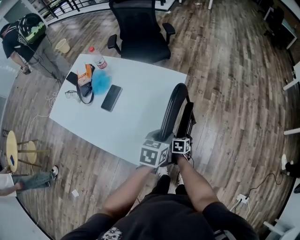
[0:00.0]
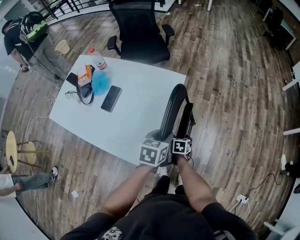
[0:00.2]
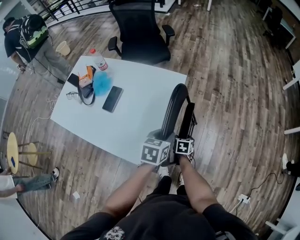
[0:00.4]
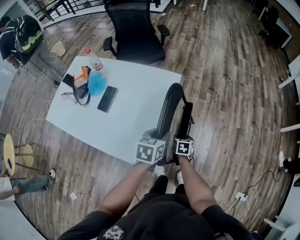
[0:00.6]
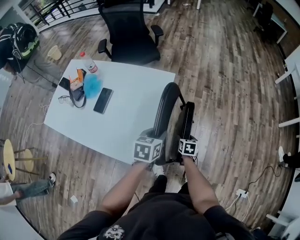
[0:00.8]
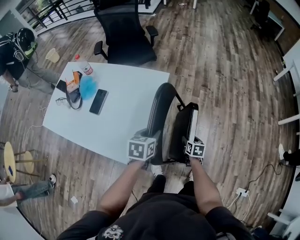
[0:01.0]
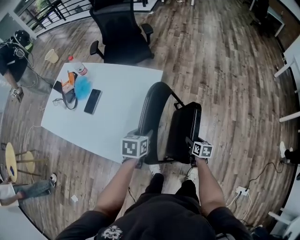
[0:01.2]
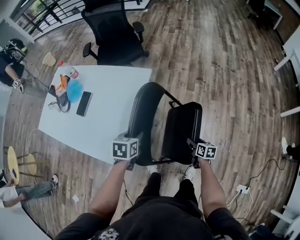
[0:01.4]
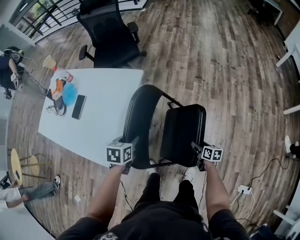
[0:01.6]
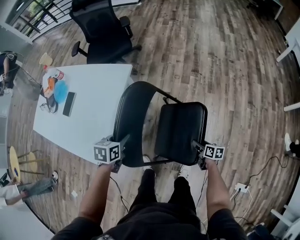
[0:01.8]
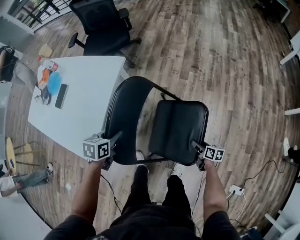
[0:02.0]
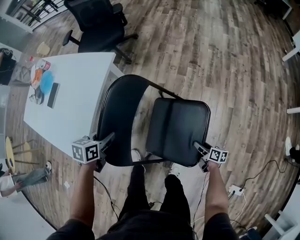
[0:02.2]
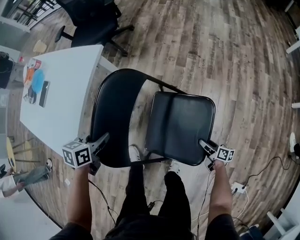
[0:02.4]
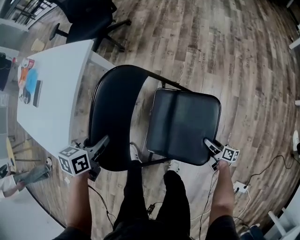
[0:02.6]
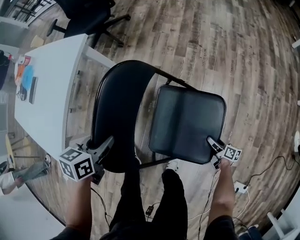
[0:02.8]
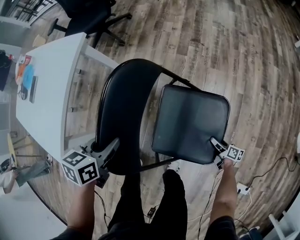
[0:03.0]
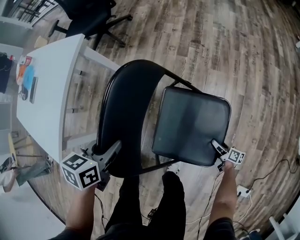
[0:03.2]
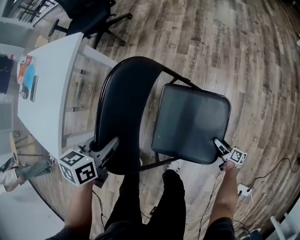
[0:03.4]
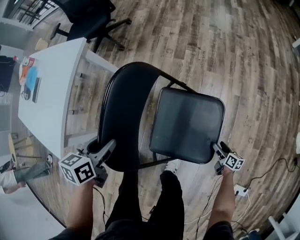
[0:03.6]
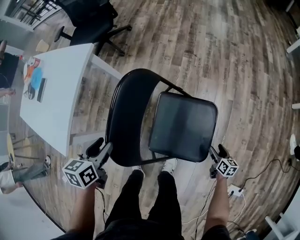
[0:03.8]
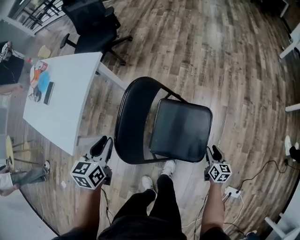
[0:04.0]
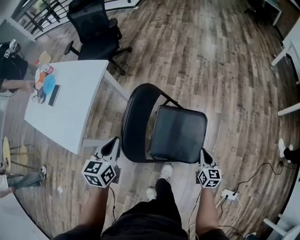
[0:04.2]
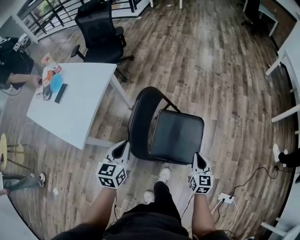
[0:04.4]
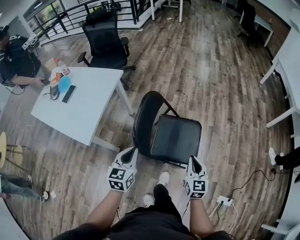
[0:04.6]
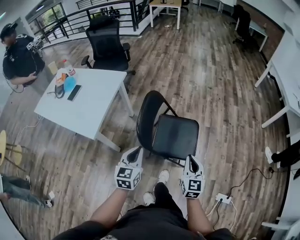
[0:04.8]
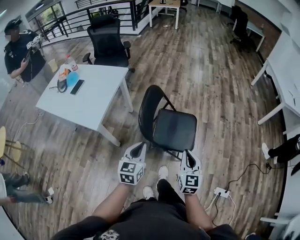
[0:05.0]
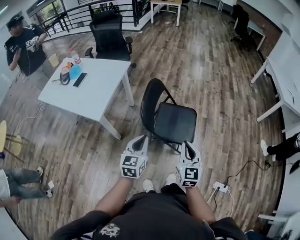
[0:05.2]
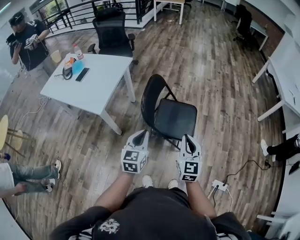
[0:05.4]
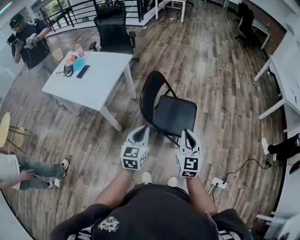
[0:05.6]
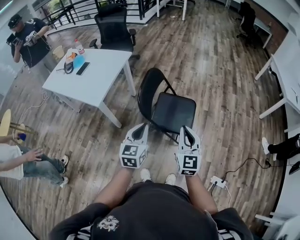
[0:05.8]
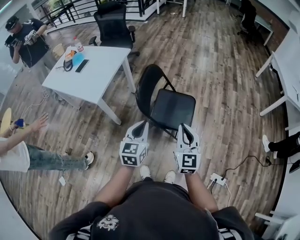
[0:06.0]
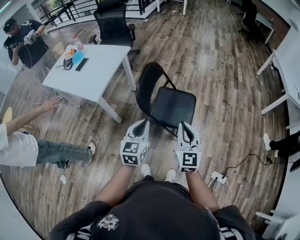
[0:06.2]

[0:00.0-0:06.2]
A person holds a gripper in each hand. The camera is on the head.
0:00.0 to 0:01.6: The right gripper shifts roughly 35 cm to the right, and changes its angle by some 40 degrees; the left gripper heads to the right and downward, covering approximately 10 cm.
0:01.6 to 0:03.2: The right gripper goes approximately 40 cm to the right and downward, and changes its angle by roughly 20 degrees; the left gripper heads to the right and downward, covering some 25 cm.
0:03.2 to 0:04.6: The left gripper heads upward and backward, covering roughly 30 cm, changes its angle by roughly 30 degrees, and opens, then closes once more. The right gripper travels upward by some 50 cm, rolls counterclockwise, seen from behind, by some 60 degrees, and closes up.
0:04.6 to 0:06.2: The left gripper heads backward, to the right and upward, covering approximately 25 cm, while the right gripper travels backward and upward by about 25 cm.

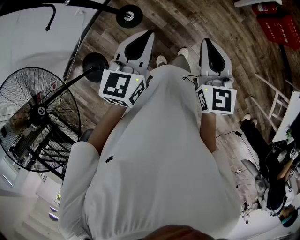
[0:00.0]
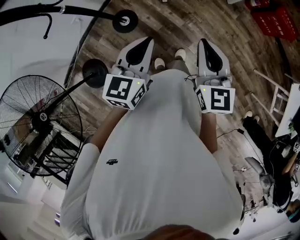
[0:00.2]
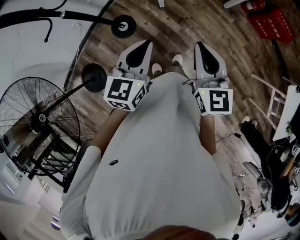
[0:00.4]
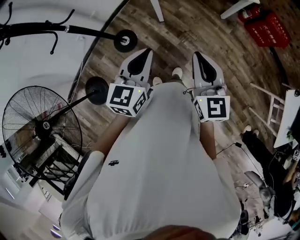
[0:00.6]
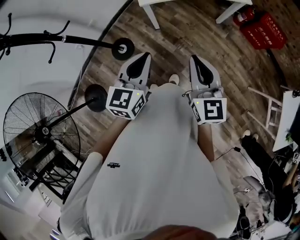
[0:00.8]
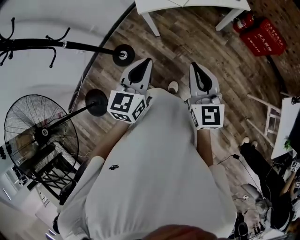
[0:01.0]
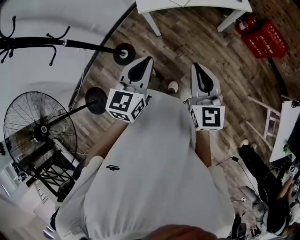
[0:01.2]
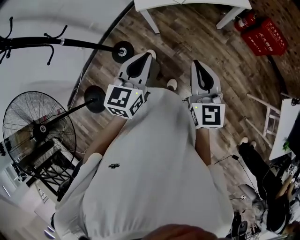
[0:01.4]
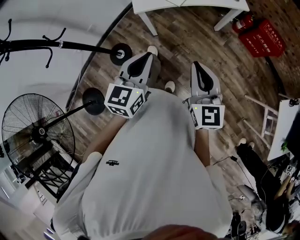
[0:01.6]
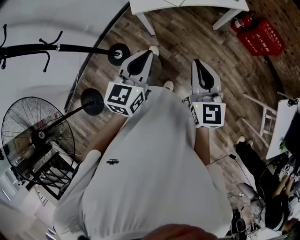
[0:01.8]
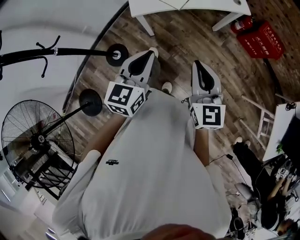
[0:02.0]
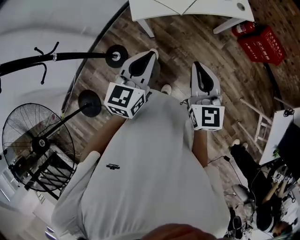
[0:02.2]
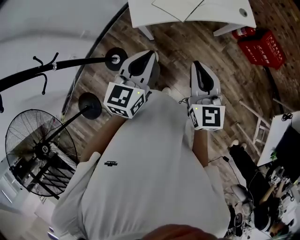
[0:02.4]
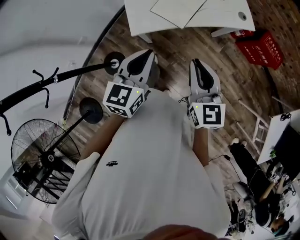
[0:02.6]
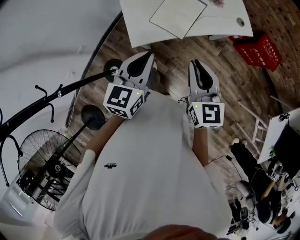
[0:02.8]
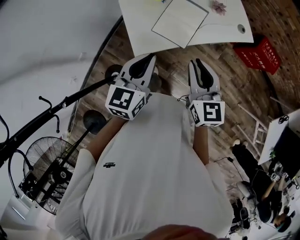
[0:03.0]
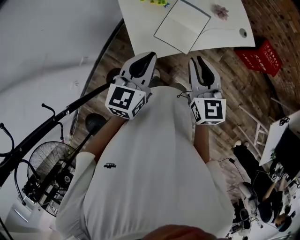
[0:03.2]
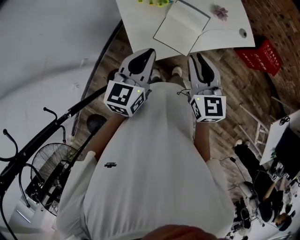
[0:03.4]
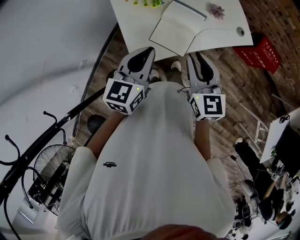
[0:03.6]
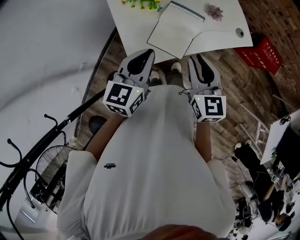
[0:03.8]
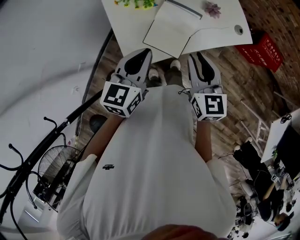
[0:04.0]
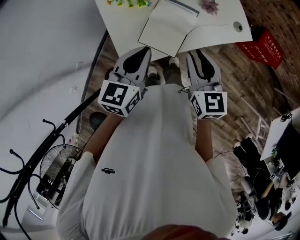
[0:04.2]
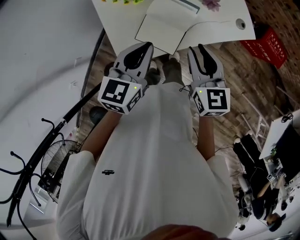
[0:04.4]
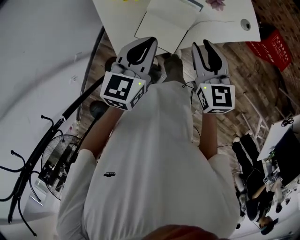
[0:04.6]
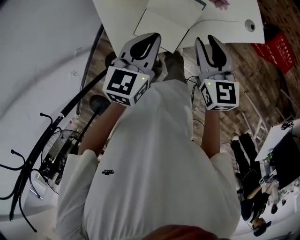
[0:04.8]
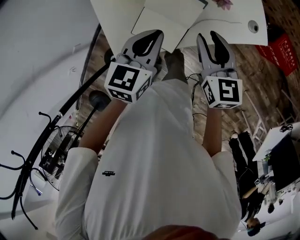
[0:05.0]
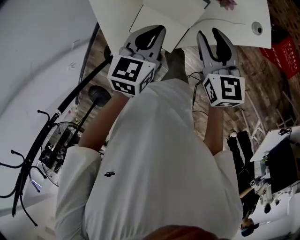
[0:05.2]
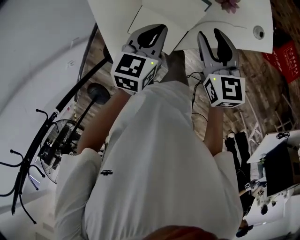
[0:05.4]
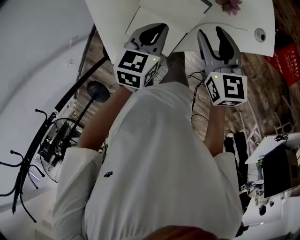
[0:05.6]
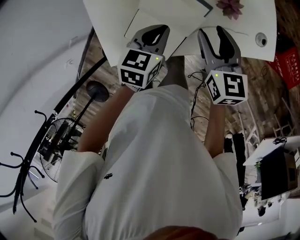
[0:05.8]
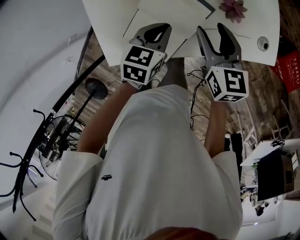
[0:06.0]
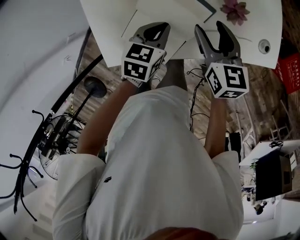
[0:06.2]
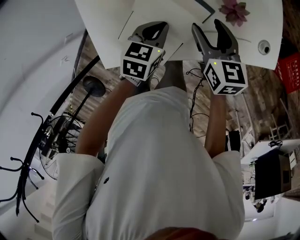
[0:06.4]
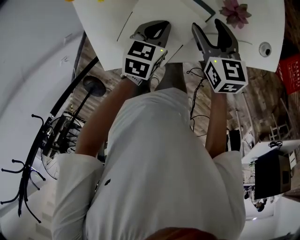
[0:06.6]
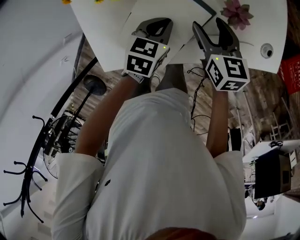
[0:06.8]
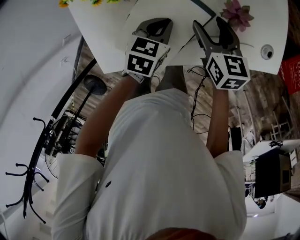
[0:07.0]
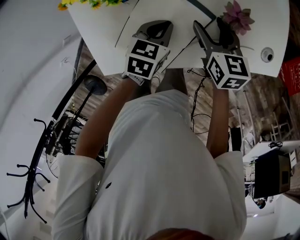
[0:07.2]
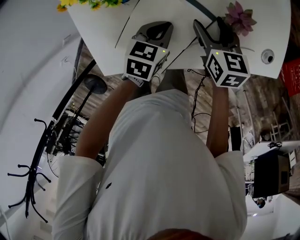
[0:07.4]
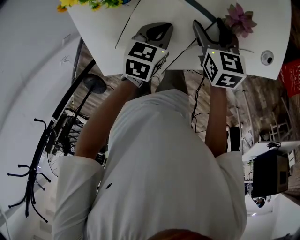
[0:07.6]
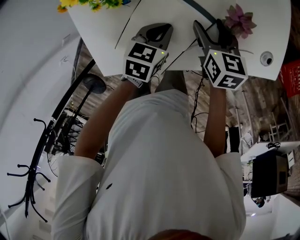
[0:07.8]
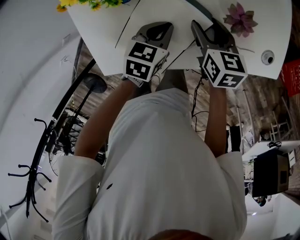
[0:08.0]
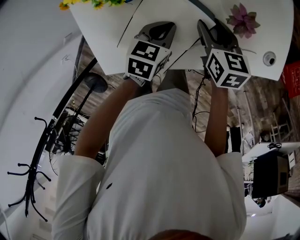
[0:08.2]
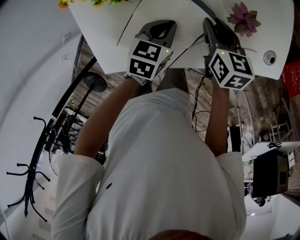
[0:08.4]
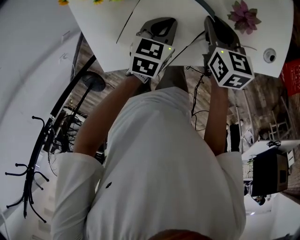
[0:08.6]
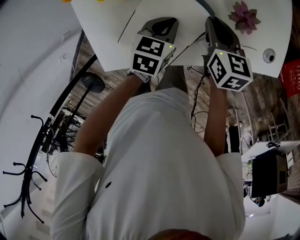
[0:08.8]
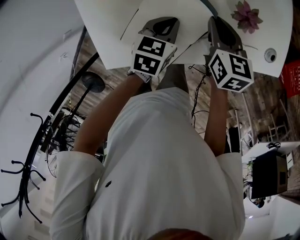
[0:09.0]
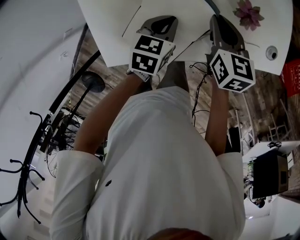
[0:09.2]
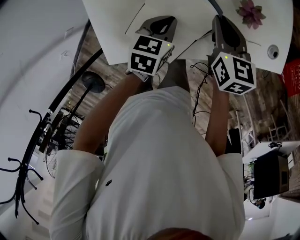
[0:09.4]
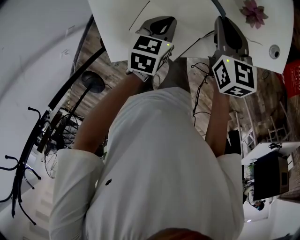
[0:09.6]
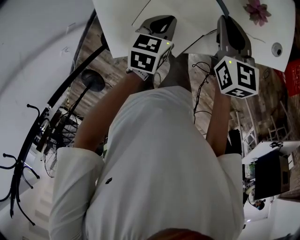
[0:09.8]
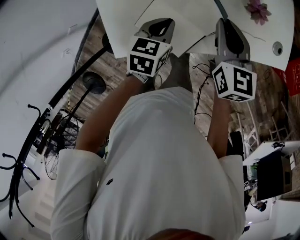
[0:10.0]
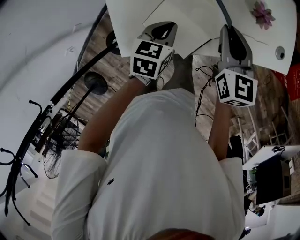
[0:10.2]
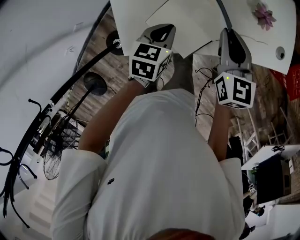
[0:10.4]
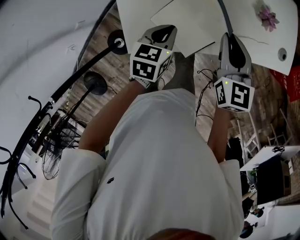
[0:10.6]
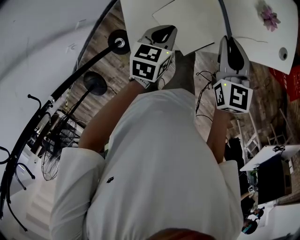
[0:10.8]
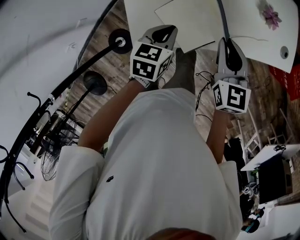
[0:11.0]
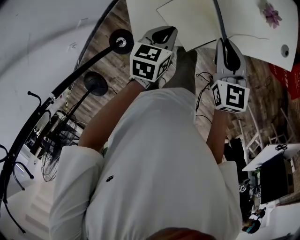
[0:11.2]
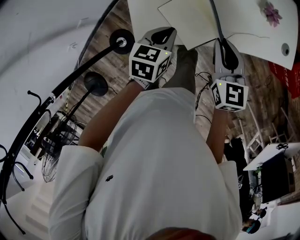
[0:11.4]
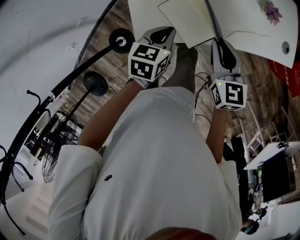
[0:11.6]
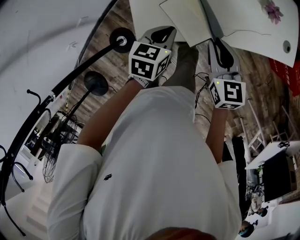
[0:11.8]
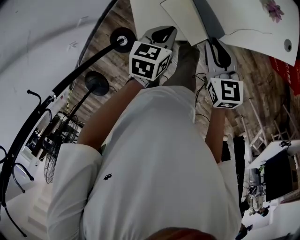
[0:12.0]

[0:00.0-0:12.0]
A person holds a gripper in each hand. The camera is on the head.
0:00.0 to 0:01.6: Both grippers travel together to the right, approximately 15 cm.
0:01.6 to 0:03.0: Both grippers travel together forward, about 30 cm.
0:03.0 to 0:04.4: Both grippers move forward and to the right, some 15 cm.
0:04.4 to 0:06.0: Both grippers travel together downward and forward, approximately 20 cm. The left gripper changes its angle by approximately 20 degrees; the right gripper opens.
0:06.0 to 0:07.6: The right gripper travels downward and forward by about 15 cm. The left gripper heads downward, covering approximately 10 cm.
0:07.6 to 0:09.0: The right gripper closes up.
0:09.0 to 0:10.4: The left gripper goes roughly 15 cm backward and to the left, while the right gripper shifts some 15 cm upward and backward.
0:10.4 to 0:12.0: The left gripper is displaced backward by approximately 10 cm, while the right gripper moves backward and to the left, about 15 cm.

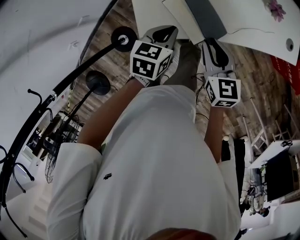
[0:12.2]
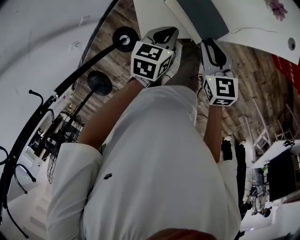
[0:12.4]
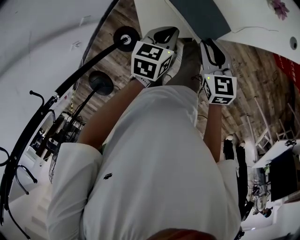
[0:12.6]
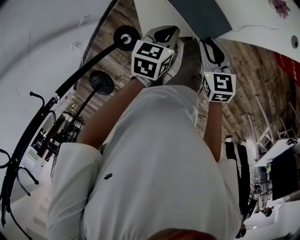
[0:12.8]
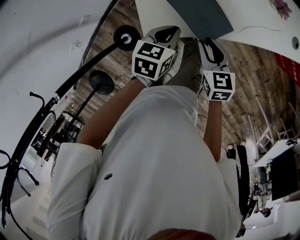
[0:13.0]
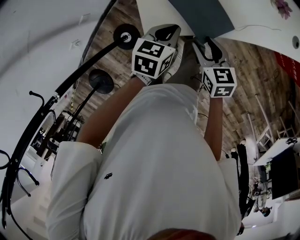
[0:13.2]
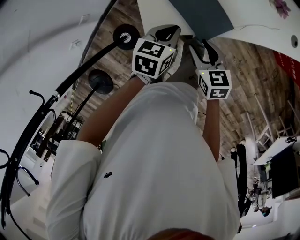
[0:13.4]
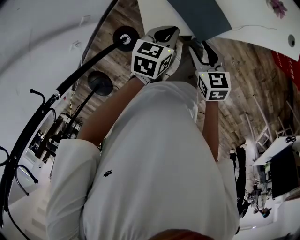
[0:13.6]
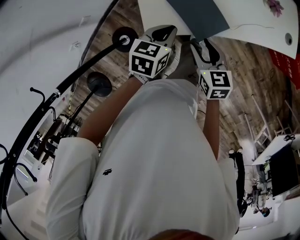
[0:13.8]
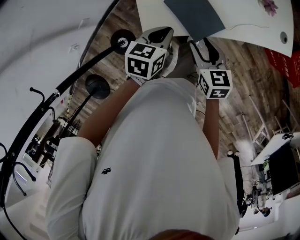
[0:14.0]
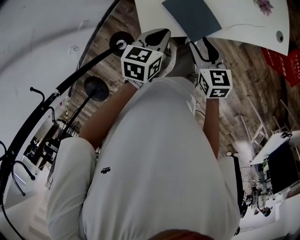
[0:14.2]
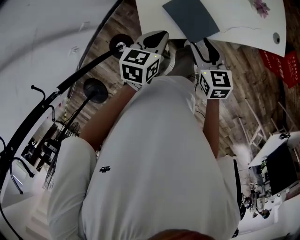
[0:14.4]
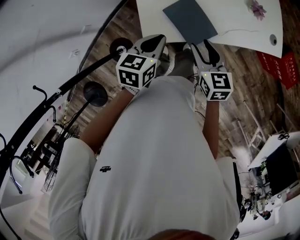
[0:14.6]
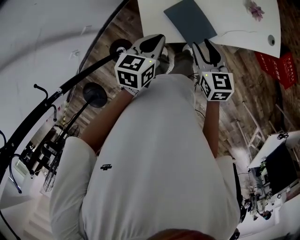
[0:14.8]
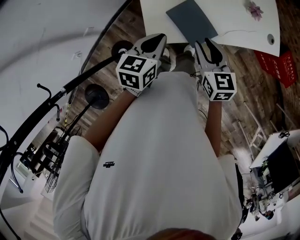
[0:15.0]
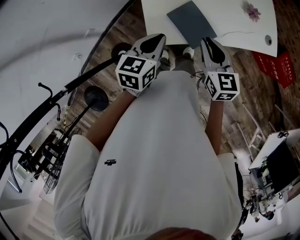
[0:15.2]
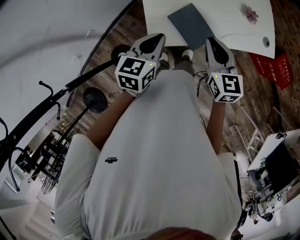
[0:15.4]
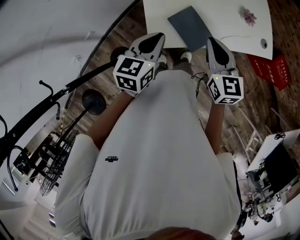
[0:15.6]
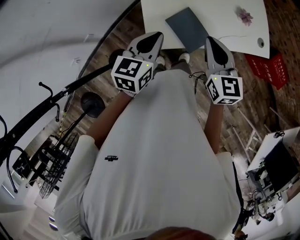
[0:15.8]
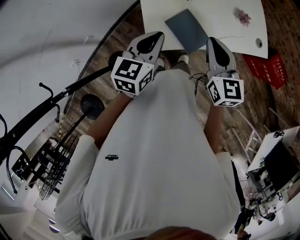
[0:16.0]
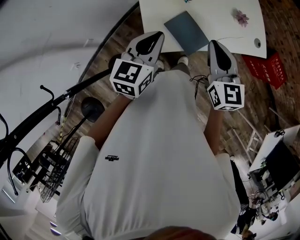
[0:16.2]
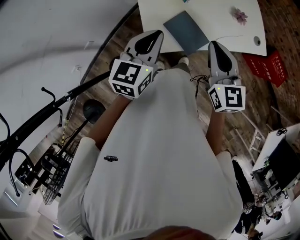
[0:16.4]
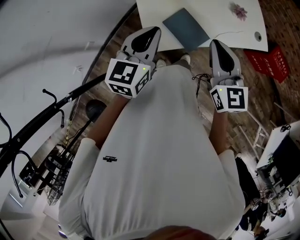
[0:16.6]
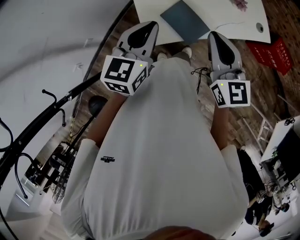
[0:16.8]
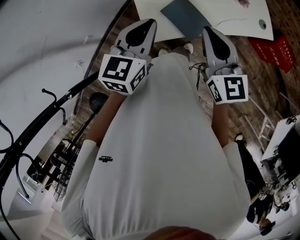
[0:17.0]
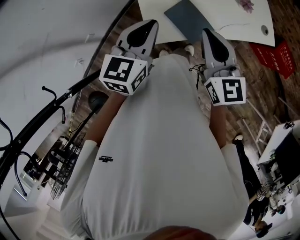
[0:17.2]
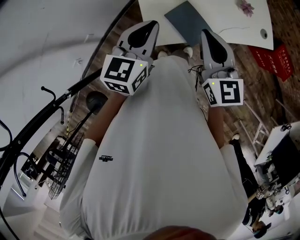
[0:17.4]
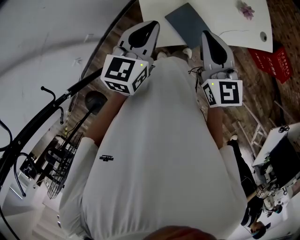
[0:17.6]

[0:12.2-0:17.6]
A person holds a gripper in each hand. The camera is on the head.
0:12.2 to 0:13.6: The right gripper goes roughly 5 cm backward, and opens up.
0:13.6 to 0:15.0: Both grippers travel together upward, roughly 15 cm.
0:15.0 to 0:16.2: Both grippers travel together upward, some 10 cm. The right gripper closes.
0:16.2 to 0:17.6: The grippers move only a little.
